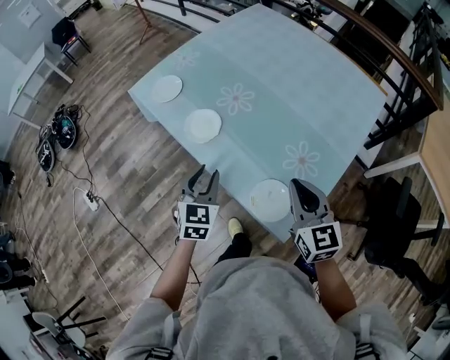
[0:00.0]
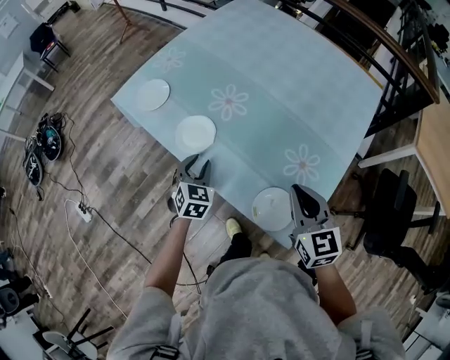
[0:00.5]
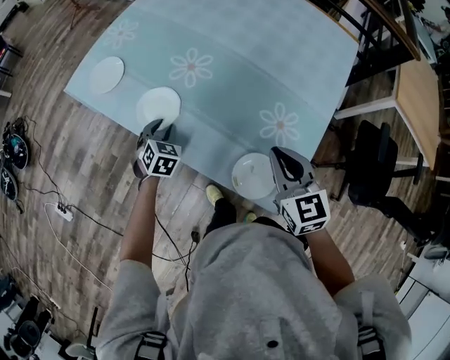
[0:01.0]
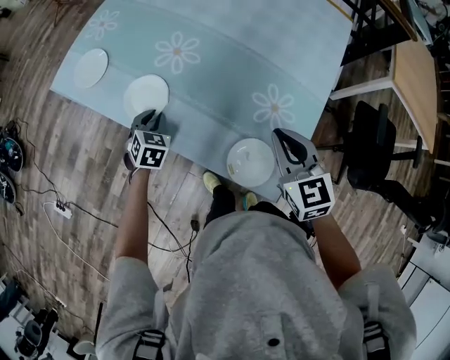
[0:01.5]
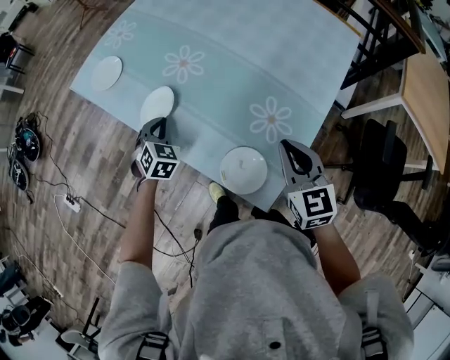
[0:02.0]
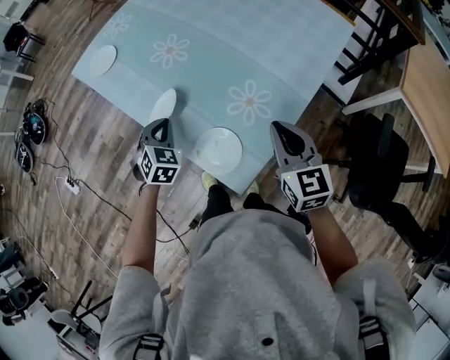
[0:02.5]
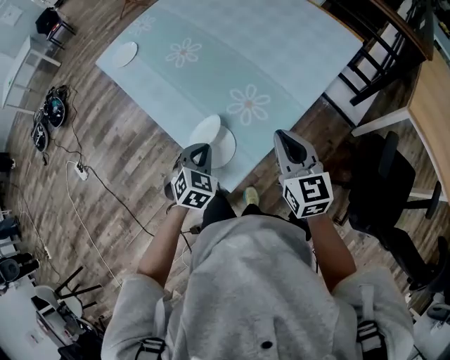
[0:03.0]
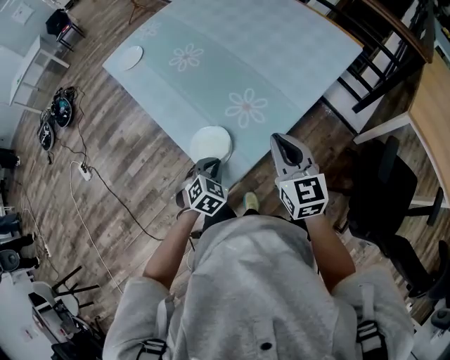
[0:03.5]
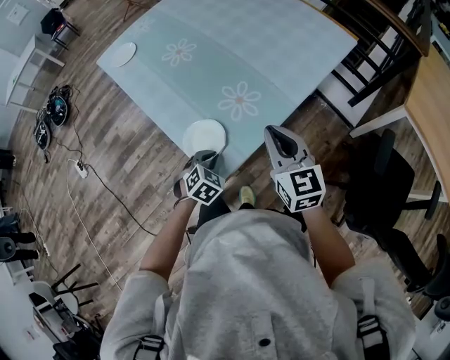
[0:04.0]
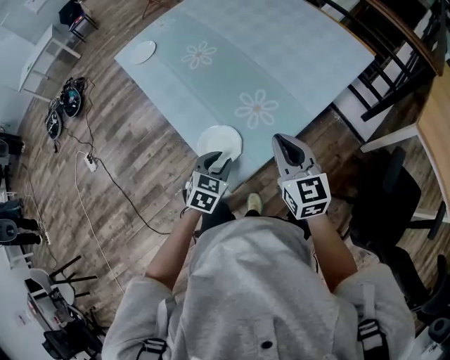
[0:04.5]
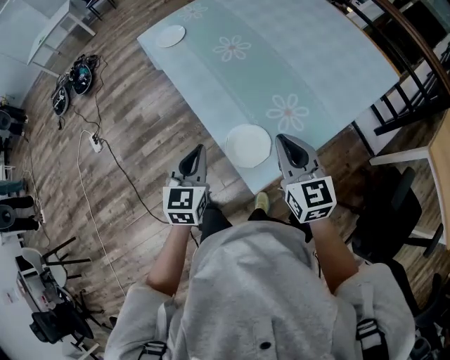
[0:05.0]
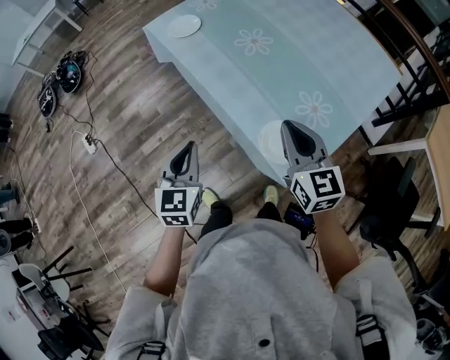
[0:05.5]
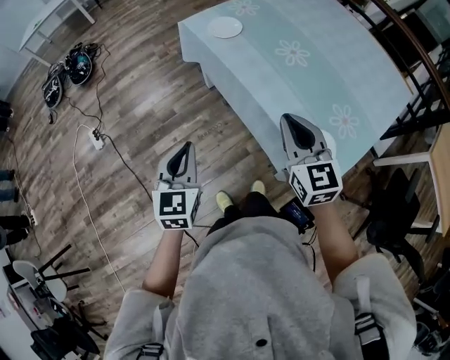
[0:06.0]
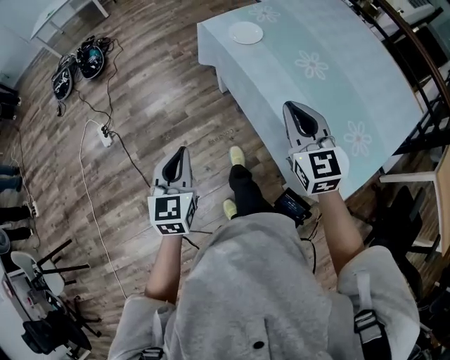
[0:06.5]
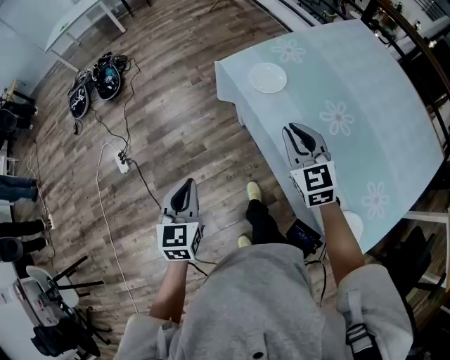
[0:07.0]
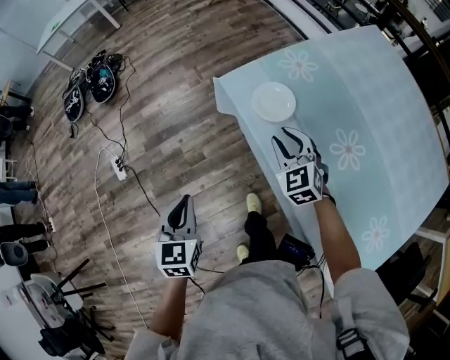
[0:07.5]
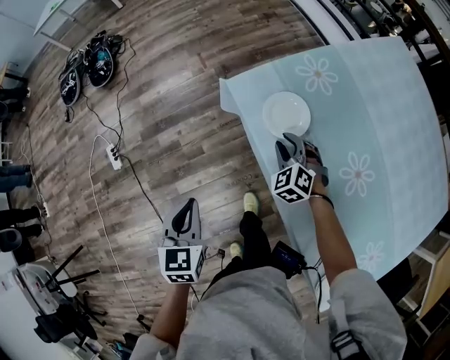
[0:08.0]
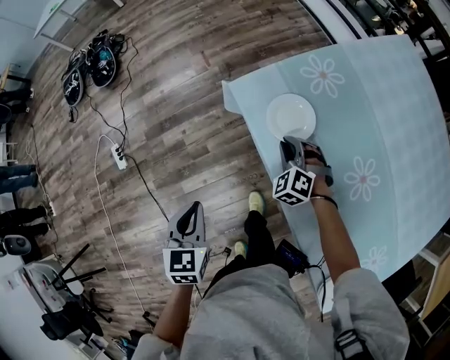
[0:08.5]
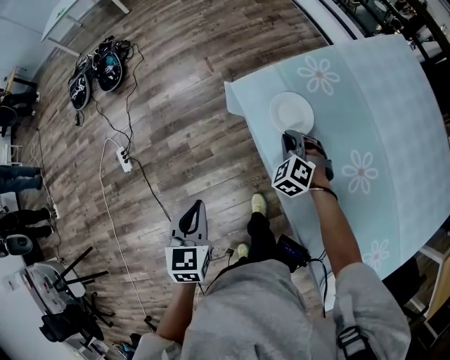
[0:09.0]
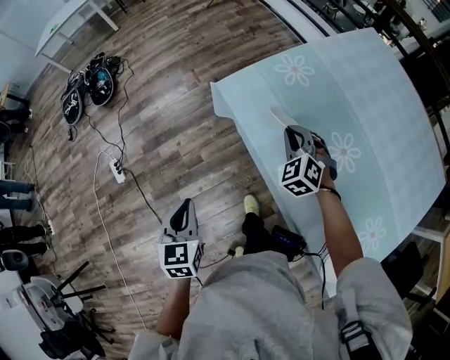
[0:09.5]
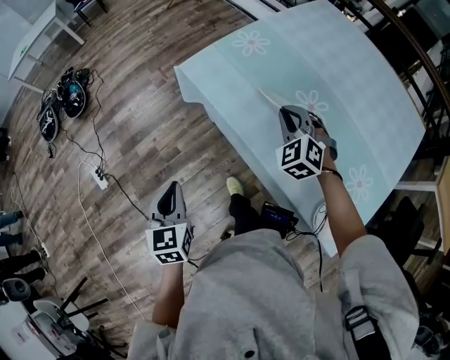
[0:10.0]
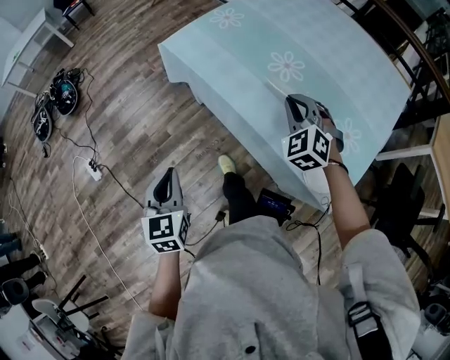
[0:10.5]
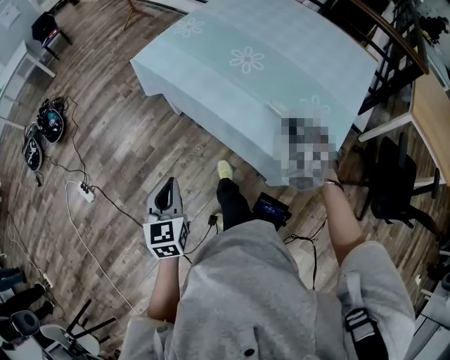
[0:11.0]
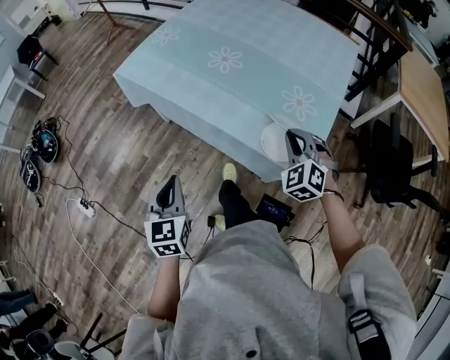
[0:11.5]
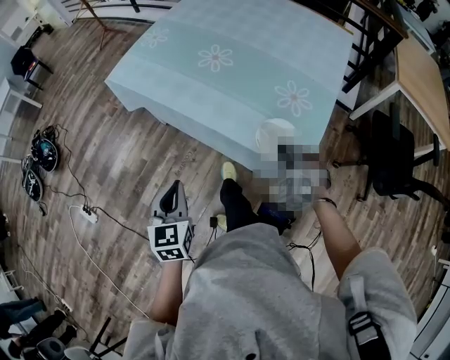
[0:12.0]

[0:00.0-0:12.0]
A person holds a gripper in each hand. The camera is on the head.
0:00.0 to 0:02.0: The left gripper travels downward and forward by approximately 15 cm, swivels roughly 30 degrees, and closes its fingers, while the right gripper goes approximately 5 cm to the right.
0:02.0 to 0:04.0: The left gripper moves backward and to the right, about 35 cm. Meanwhile the right gripper heads to the right and backward, covering some 10 cm.
0:04.0 to 0:06.0: The right gripper heads to the left, covering roughly 40 cm. The left gripper is displaced to the left and upward by some 50 cm, points its fingers approximately 40 degrees further upward, and opens, then closes once more.
0:06.0 to 0:08.0: The left gripper heads forward, covering approximately 30 cm, and changes its angle by some 20 degrees, while the right gripper heads forward and downward, covering approximately 50 cm, angles its fingers downward, by roughly 30 degrees, and opens up.
0:08.0 to 0:10.0: The left gripper travels backward by about 10 cm. The right gripper is displaced upward, backward and to the right by about 25 cm, and closes.
0:10.0 to 0:12.0: The left gripper travels to the right and backward by some 25 cm, and turns by approximately 20 degrees. Meanwhile the right gripper moves backward and to the right, roughly 40 cm.

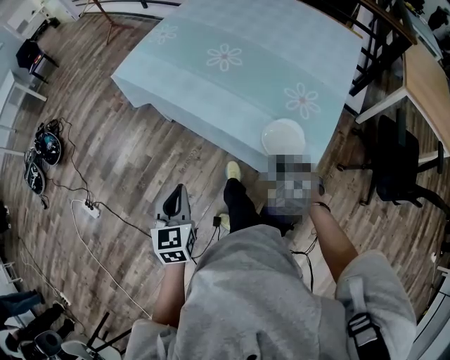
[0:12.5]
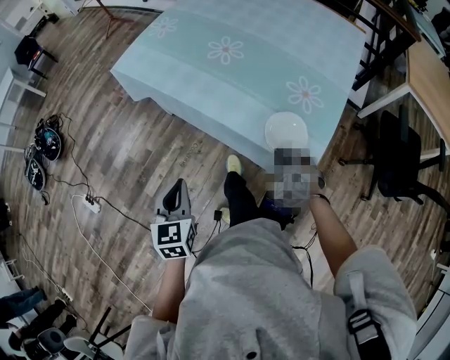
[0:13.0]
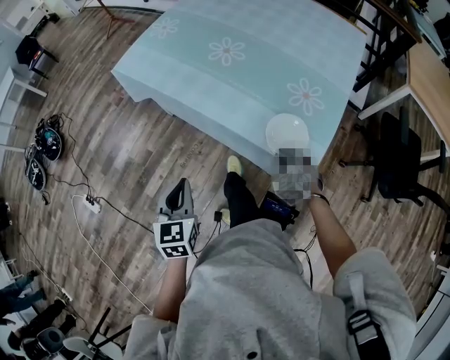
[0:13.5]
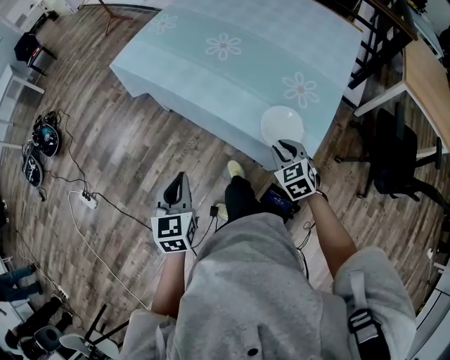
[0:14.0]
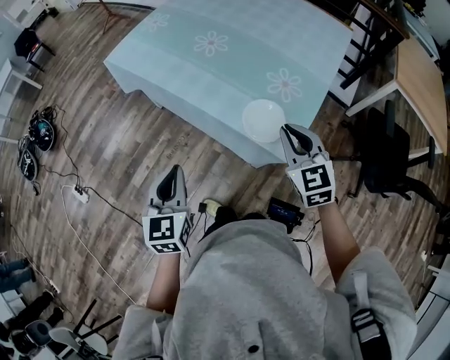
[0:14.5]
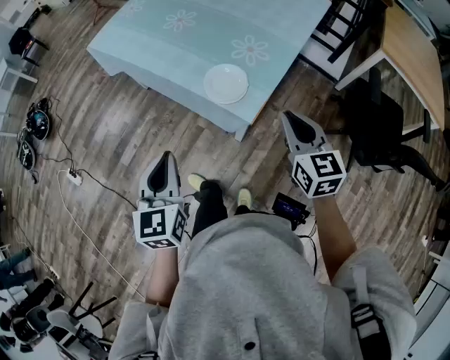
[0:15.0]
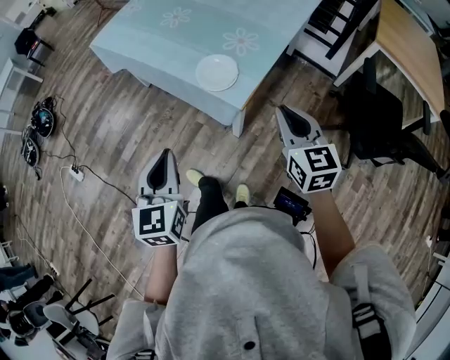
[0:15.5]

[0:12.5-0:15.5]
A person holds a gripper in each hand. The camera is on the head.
0:12.5 to 0:14.0: The right gripper turns by approximately 30 degrees.
0:14.0 to 0:15.5: The two grippers go about 30 cm backward, to the right and upward. The right gripper swivels some 30 degrees.

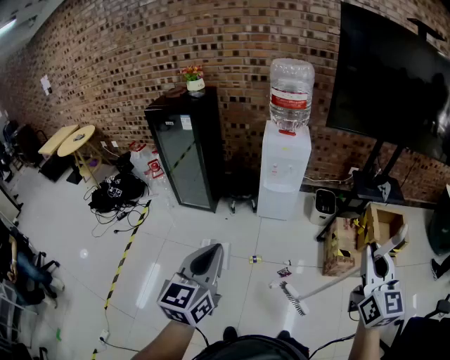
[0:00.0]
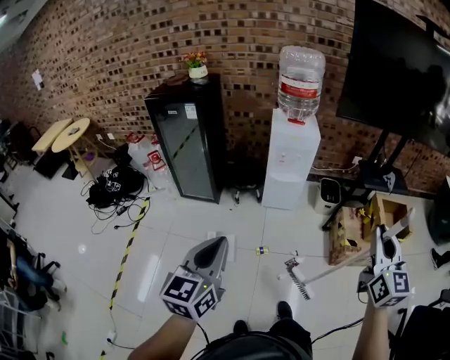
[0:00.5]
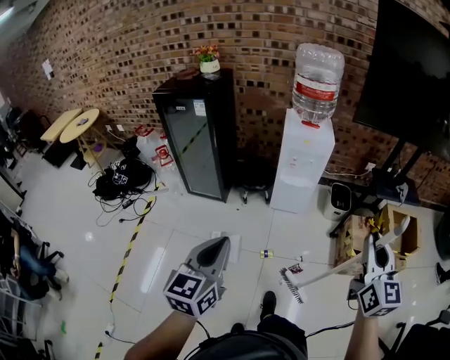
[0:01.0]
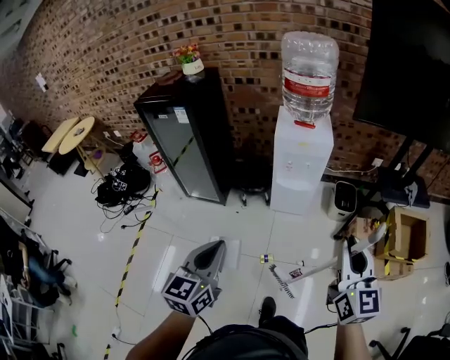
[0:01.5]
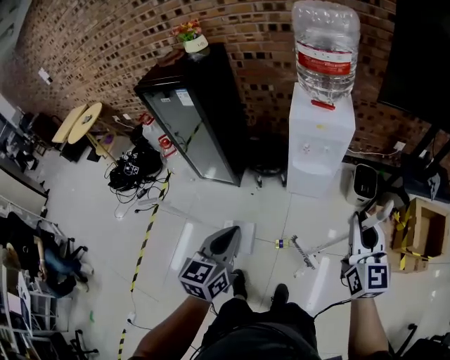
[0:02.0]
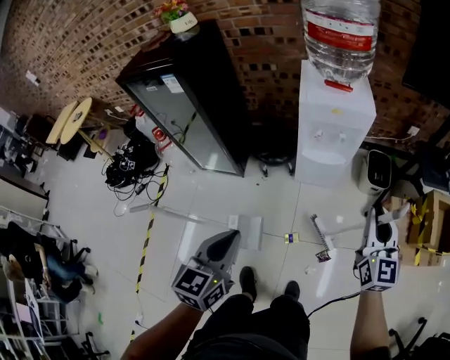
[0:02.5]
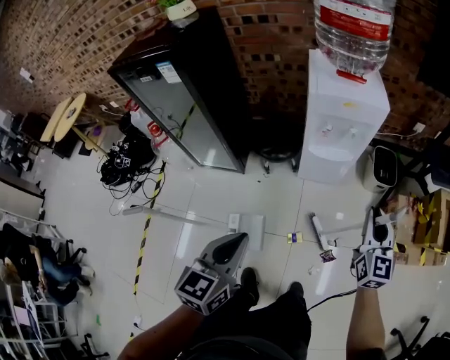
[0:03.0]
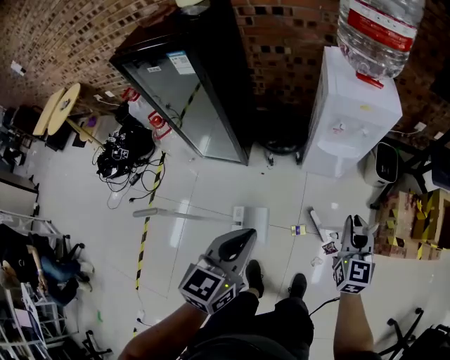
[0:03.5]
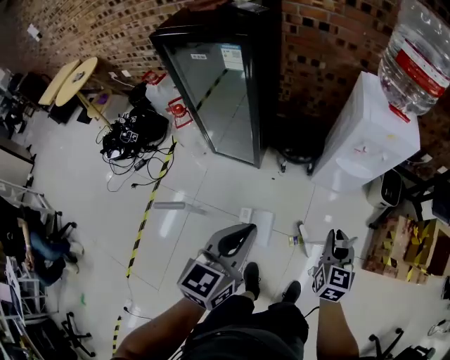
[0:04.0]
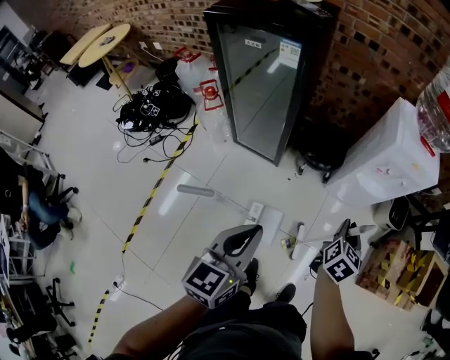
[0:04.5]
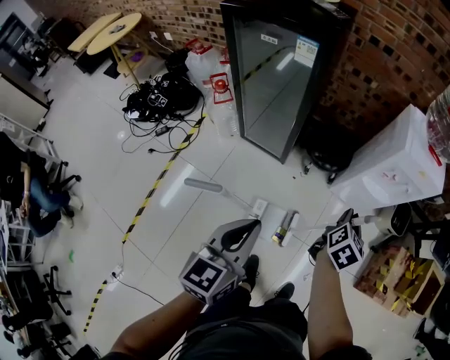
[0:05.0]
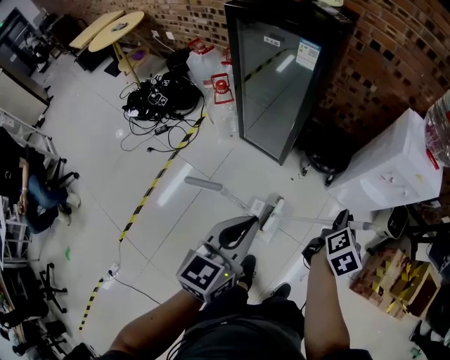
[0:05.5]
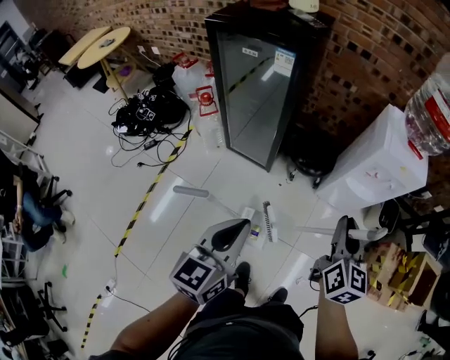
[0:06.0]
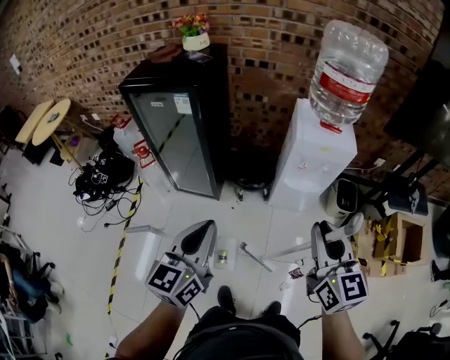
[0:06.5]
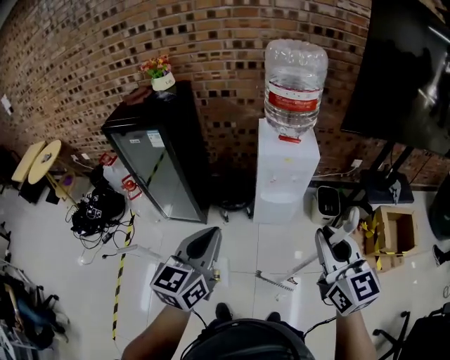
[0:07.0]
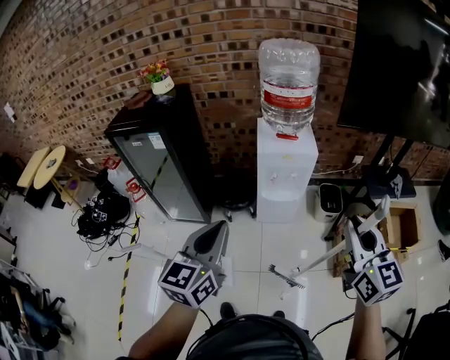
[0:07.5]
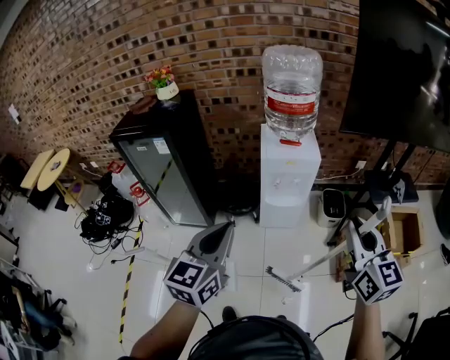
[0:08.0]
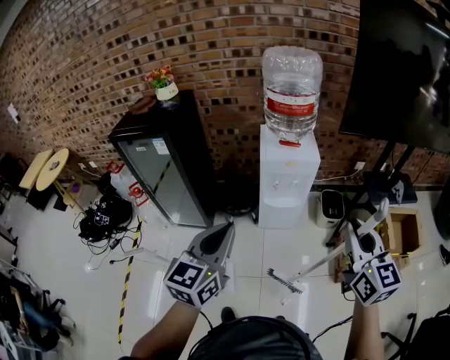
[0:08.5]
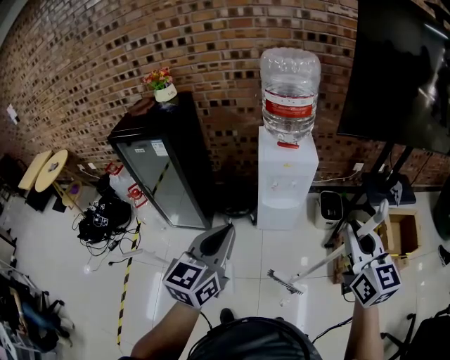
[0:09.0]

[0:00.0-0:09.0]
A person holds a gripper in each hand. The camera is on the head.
0:00.0 to 0:02.0: The right gripper goes about 40 cm forward, while the left gripper heads forward and downward, covering roughly 40 cm.
0:02.0 to 0:04.5: The right gripper travels to the left and downward by approximately 50 cm, and swivels roughly 40 degrees. The left gripper goes roughly 40 cm to the left.
0:04.5 to 0:07.0: The right gripper is displaced upward and to the right by some 50 cm, and turns by approximately 40 degrees. Meanwhile the left gripper goes some 35 cm to the right and upward.
0:07.0 to 0:09.0: The right gripper is displaced to the right by about 10 cm. The left gripper goes approximately 5 cm to the right.

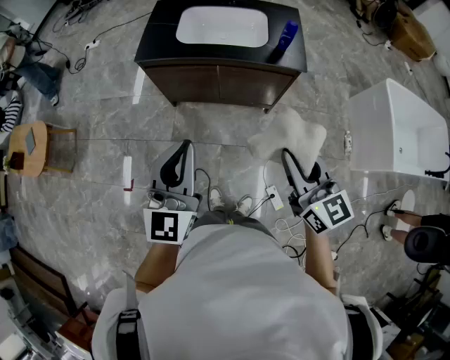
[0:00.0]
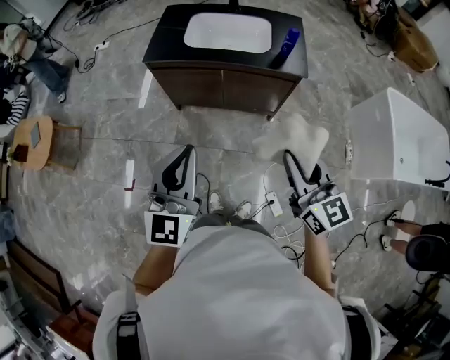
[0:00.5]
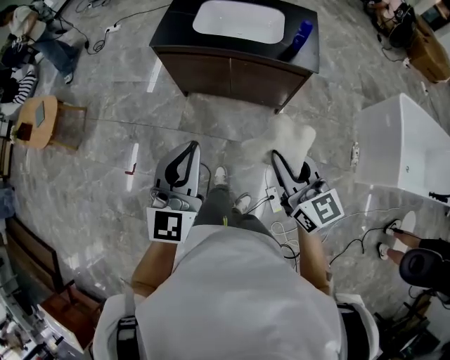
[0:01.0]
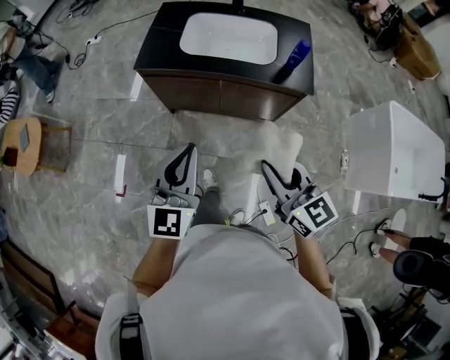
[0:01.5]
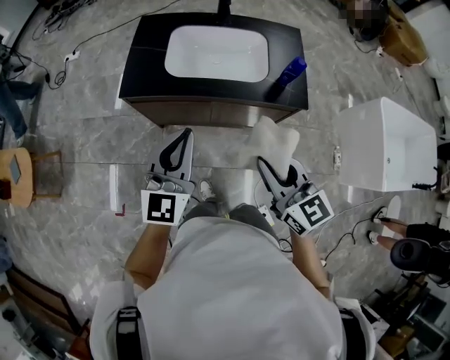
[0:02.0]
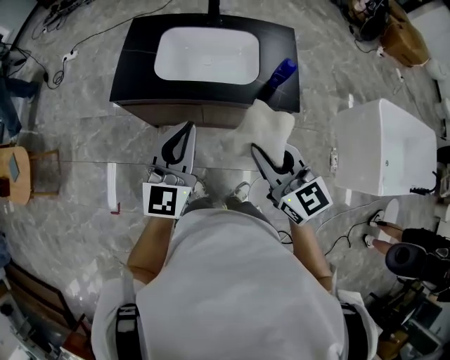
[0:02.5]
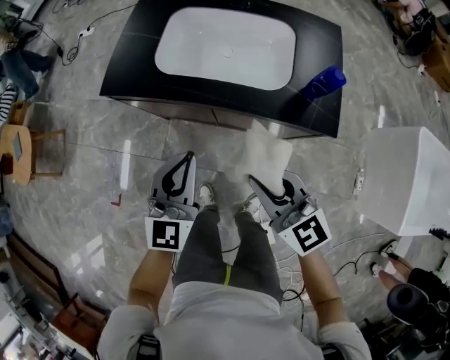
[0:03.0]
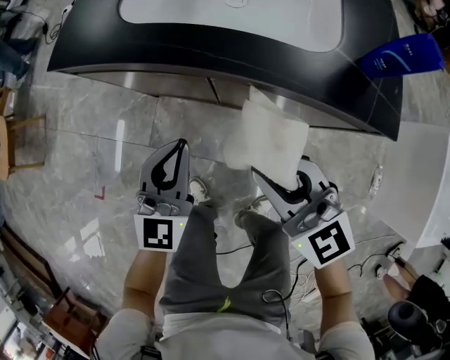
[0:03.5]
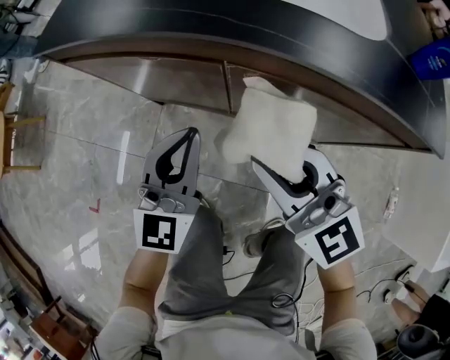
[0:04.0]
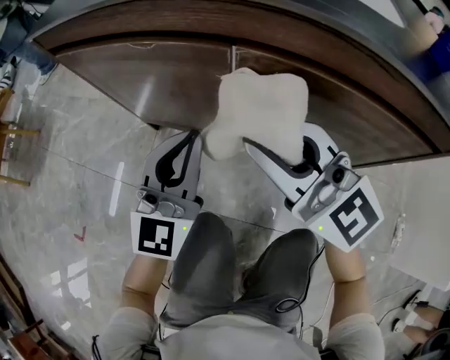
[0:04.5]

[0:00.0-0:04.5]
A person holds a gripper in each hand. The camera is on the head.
0:00.0 to 0:02.0: The two grippers go roughly 25 cm forward.
0:02.0 to 0:04.5: Both grippers move downward, about 60 cm. The right gripper rotates approximately 40 degrees.
